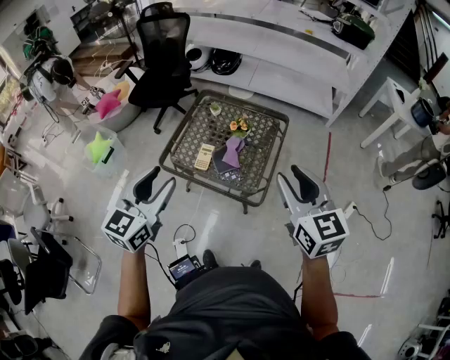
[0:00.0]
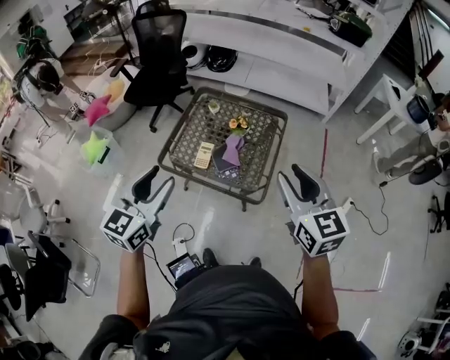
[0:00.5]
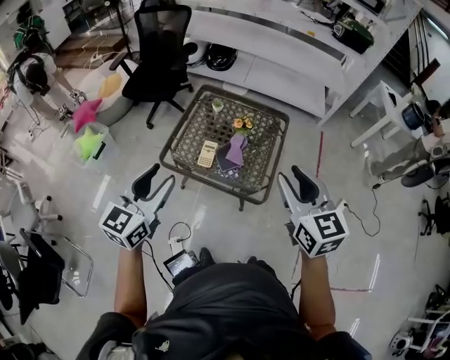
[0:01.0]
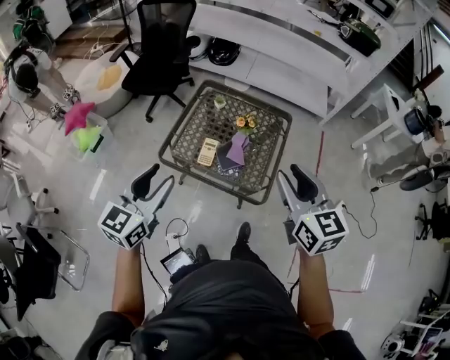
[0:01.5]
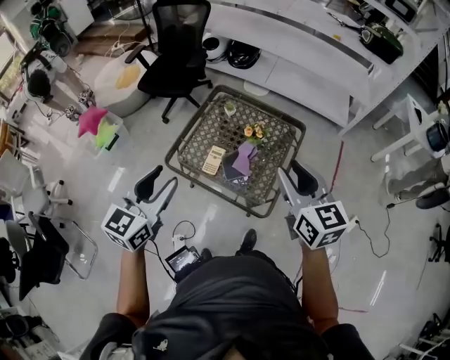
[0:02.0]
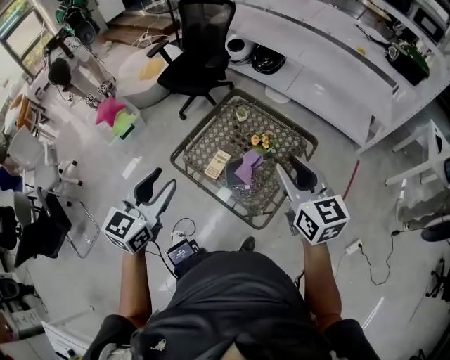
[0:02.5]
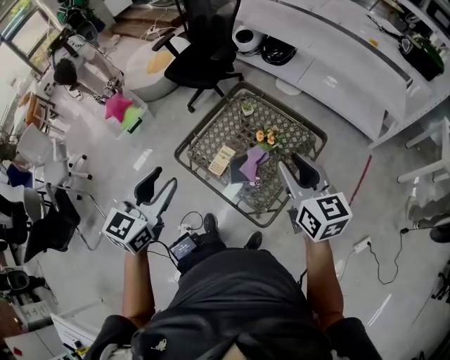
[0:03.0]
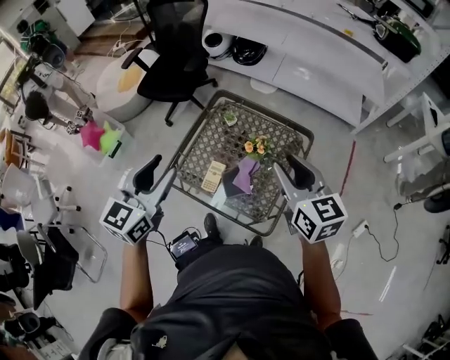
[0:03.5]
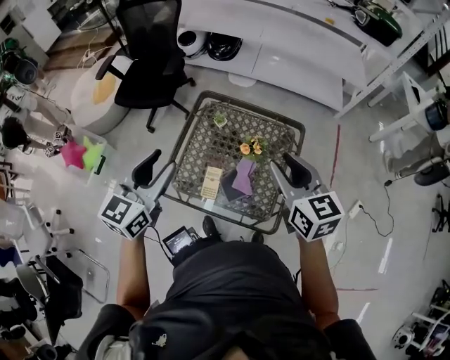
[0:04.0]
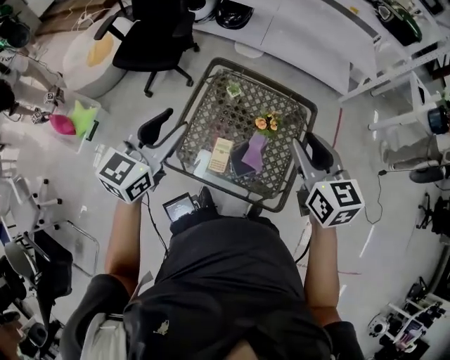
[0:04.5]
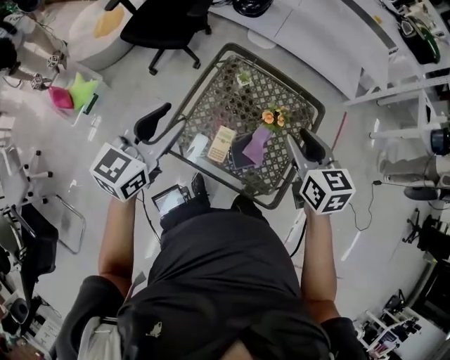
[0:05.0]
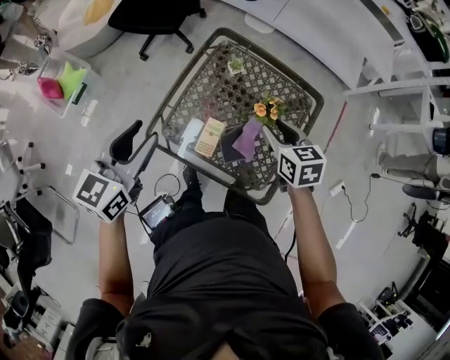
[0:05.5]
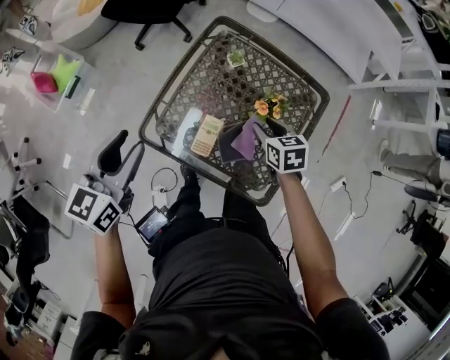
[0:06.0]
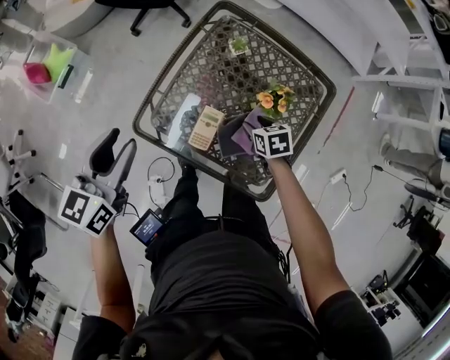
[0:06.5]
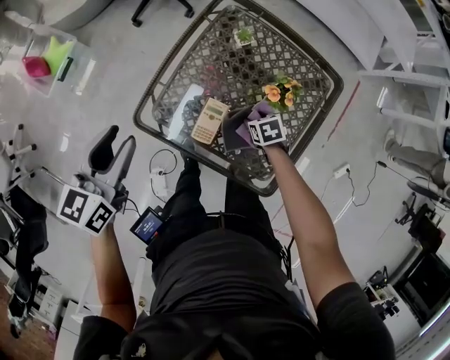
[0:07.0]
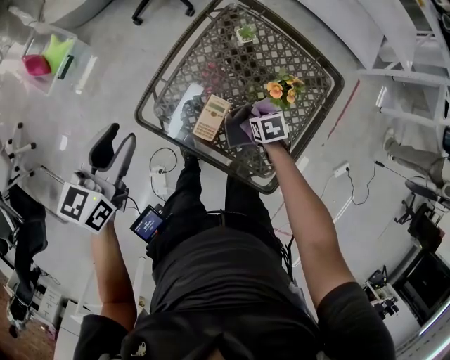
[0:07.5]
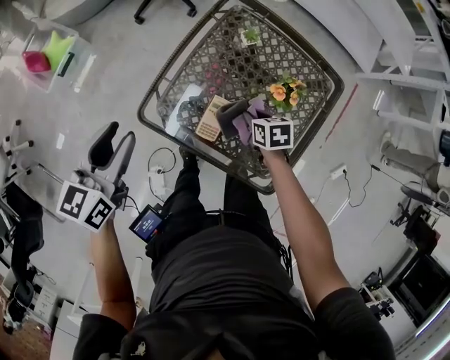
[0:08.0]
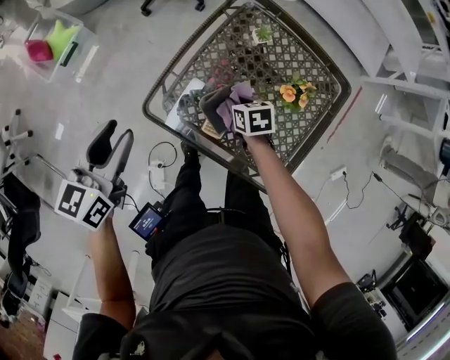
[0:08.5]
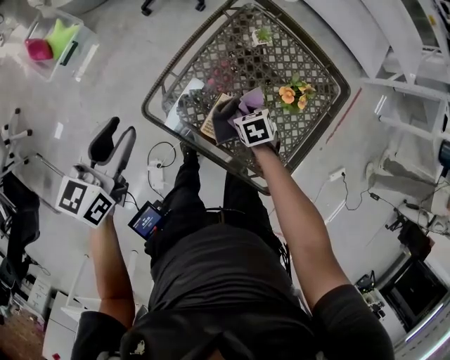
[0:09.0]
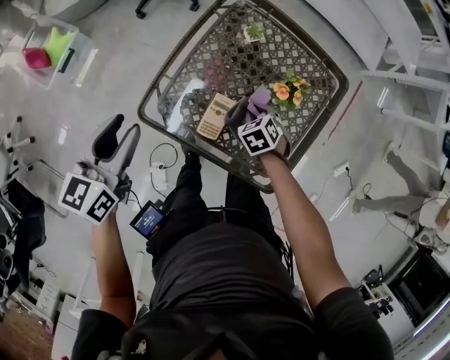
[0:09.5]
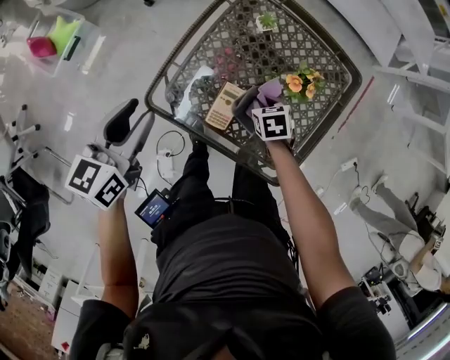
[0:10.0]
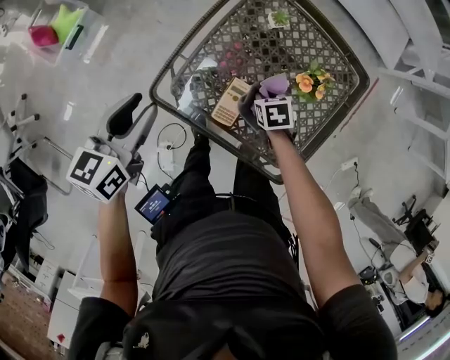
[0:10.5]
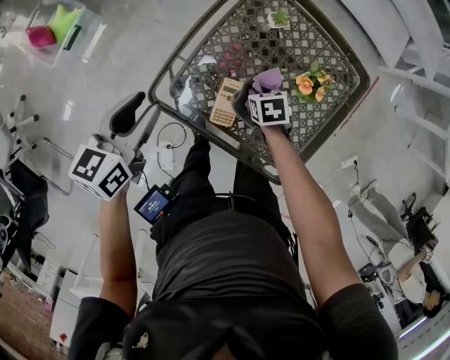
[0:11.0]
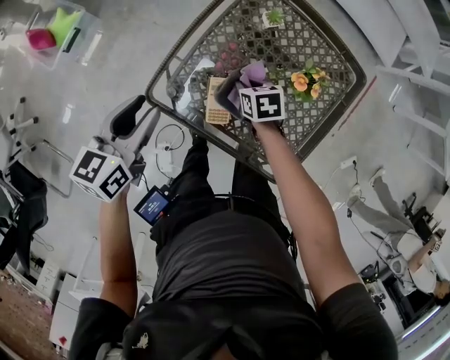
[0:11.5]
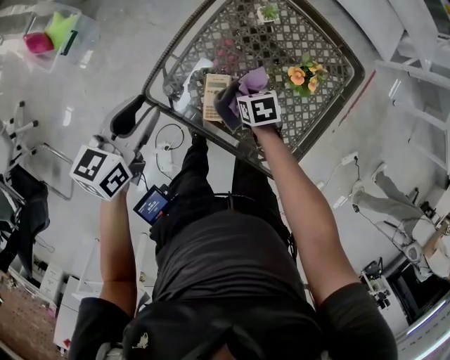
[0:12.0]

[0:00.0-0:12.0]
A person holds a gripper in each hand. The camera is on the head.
0:00.0 to 0:02.0: The right gripper shifts roughly 15 cm forward and to the left; the left gripper travels forward by about 5 cm.
0:02.0 to 0:04.0: The grippers both shift forward by some 20 cm.
0:04.0 to 0:06.0: The left gripper shifts roughly 15 cm downward and to the left, and swivels about 20 degrees; the right gripper heads downward, covering approximately 30 cm, and points its fingers about 40 degrees further downward.
0:06.0 to 0:08.0: The left gripper shifts approximately 5 cm downward. The right gripper travels downward by some 10 cm.
0:08.0 to 0:10.0: The right gripper travels to the left and back again, approximately 10 cm each way.
0:10.0 to 0:12.0: The right gripper heads to the left, covering some 5 cm.

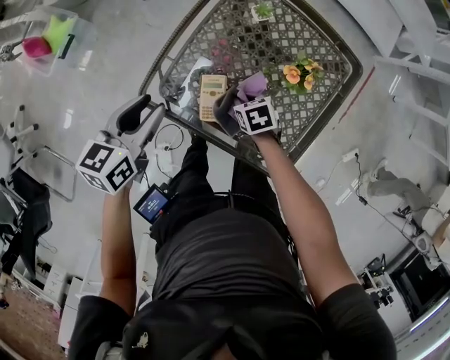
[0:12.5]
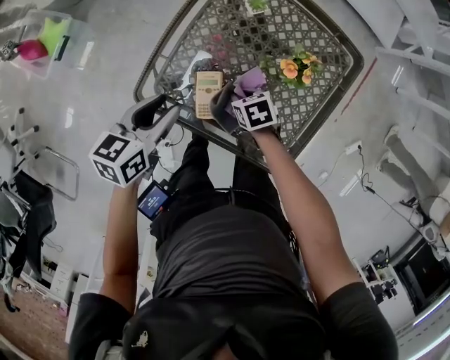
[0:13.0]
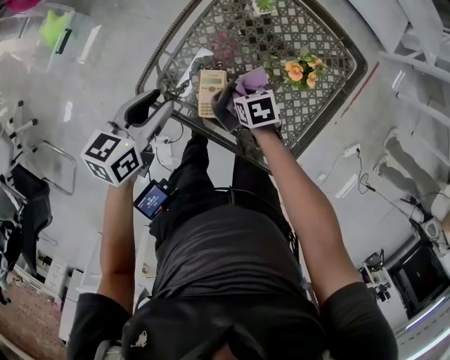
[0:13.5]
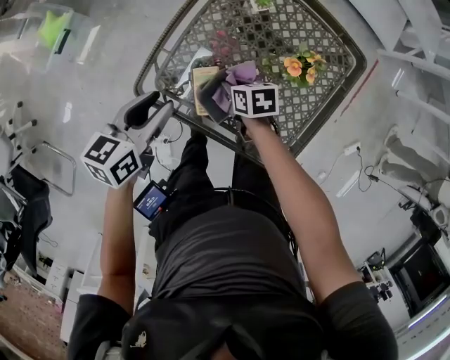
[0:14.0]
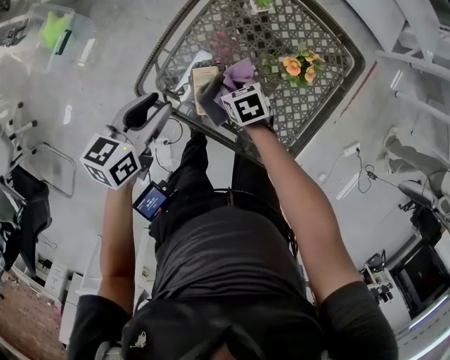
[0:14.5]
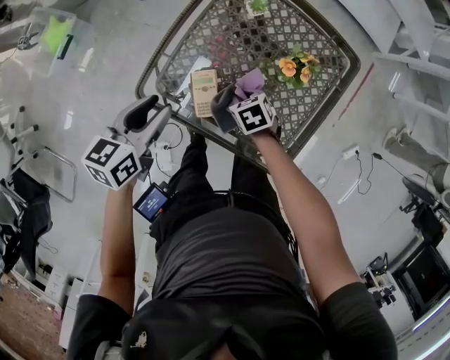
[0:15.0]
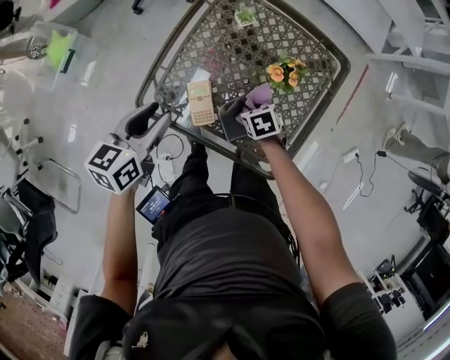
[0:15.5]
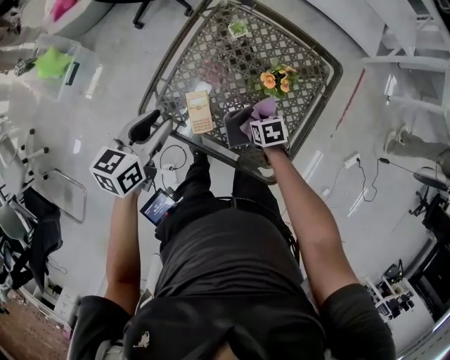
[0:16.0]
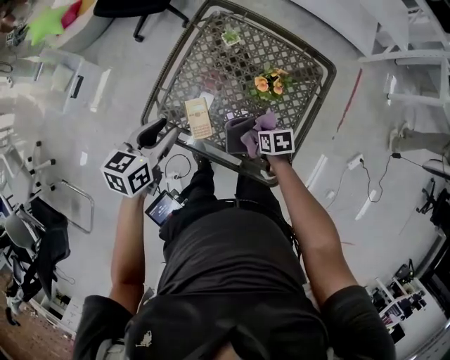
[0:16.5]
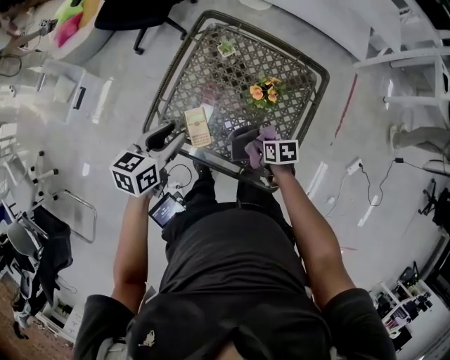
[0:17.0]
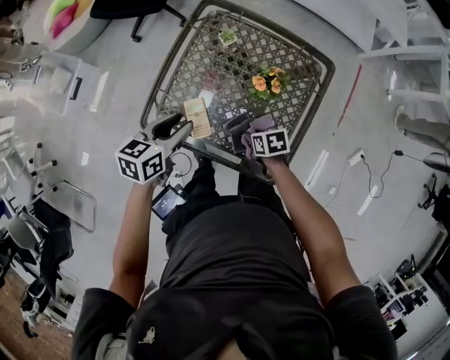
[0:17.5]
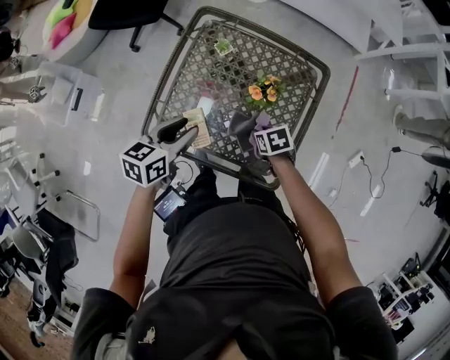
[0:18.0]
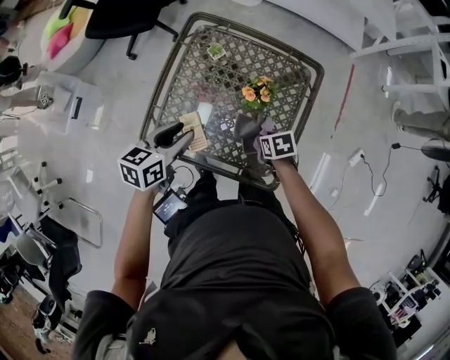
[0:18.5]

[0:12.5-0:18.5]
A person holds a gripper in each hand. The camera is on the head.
0:14.5 to 0:16.5: The right gripper goes some 15 cm to the right and backward, and changes its angle by some 30 degrees, while the left gripper moves approximately 5 cm.
0:16.5 to 0:18.5: The right gripper shifts by roughly 5 cm; the left gripper shifts about 5 cm to the right.

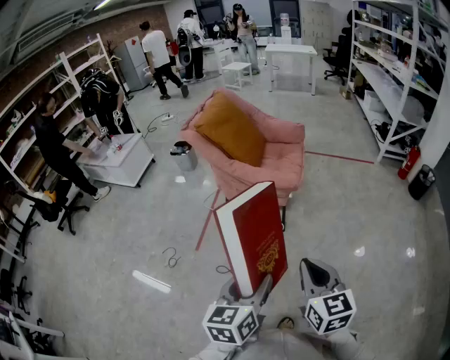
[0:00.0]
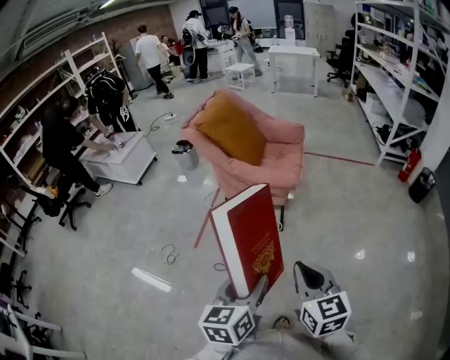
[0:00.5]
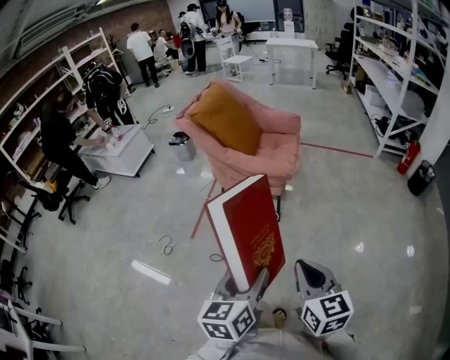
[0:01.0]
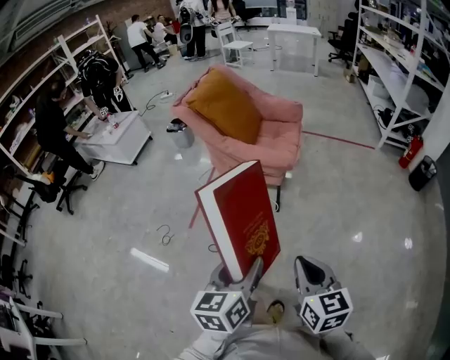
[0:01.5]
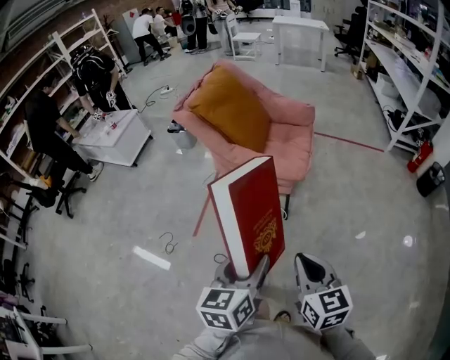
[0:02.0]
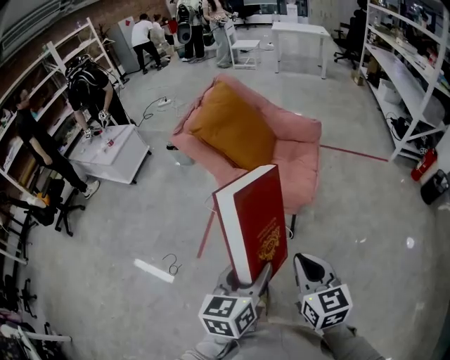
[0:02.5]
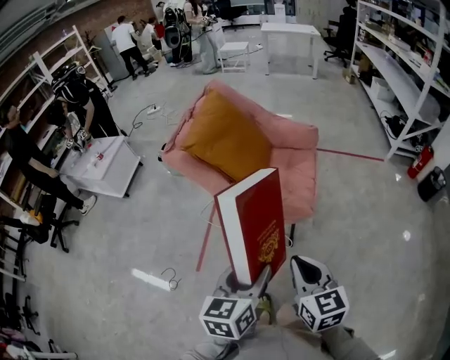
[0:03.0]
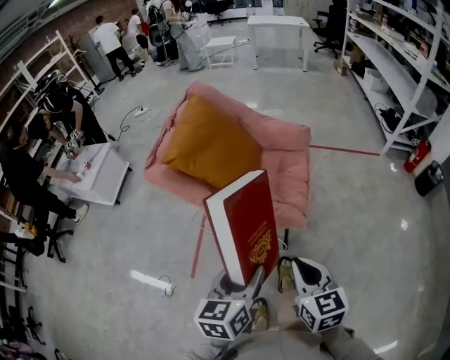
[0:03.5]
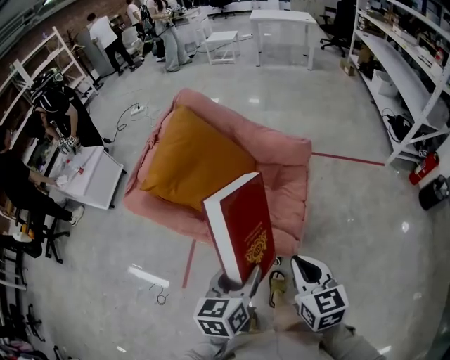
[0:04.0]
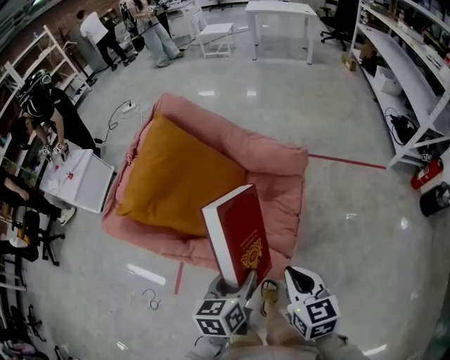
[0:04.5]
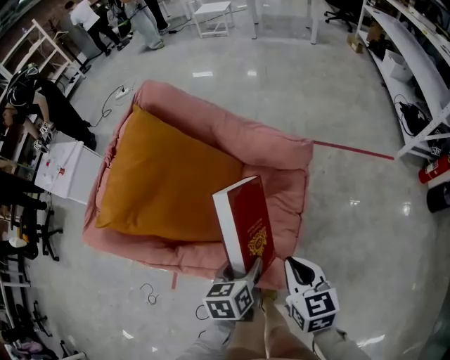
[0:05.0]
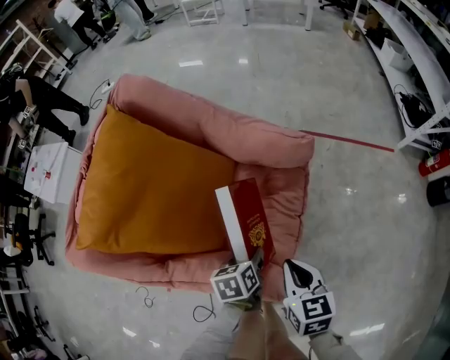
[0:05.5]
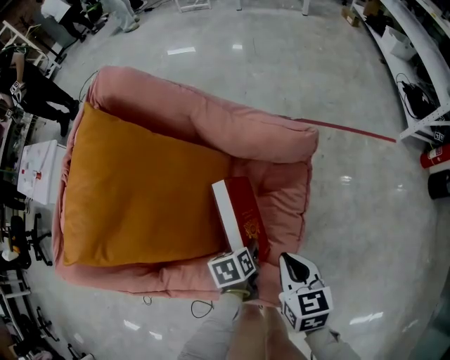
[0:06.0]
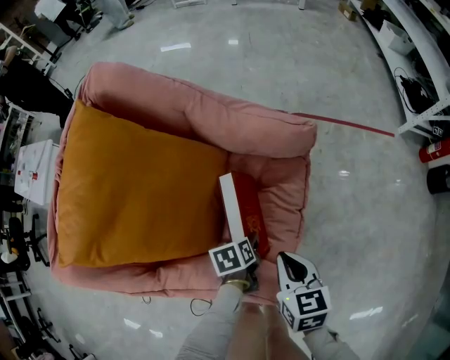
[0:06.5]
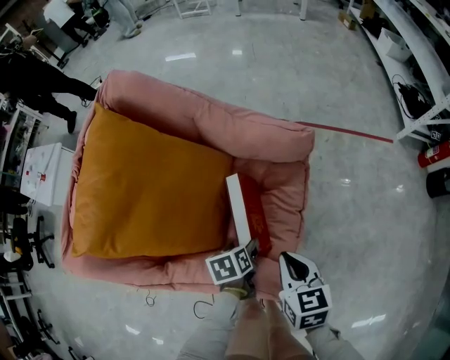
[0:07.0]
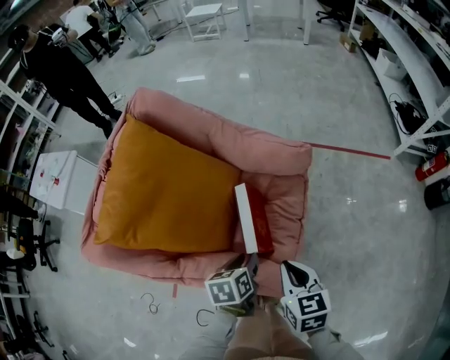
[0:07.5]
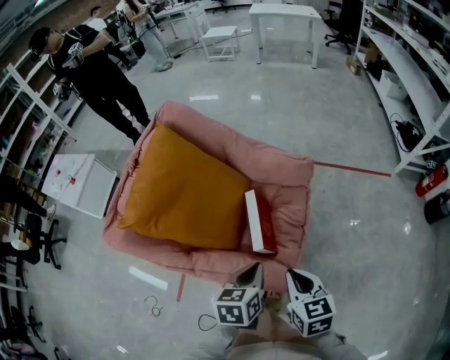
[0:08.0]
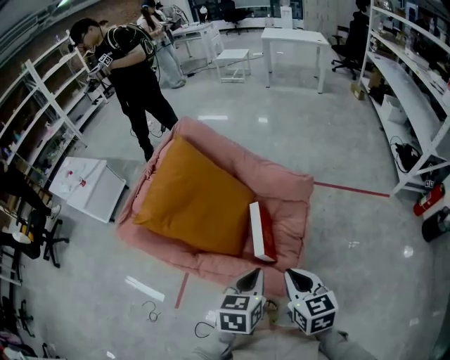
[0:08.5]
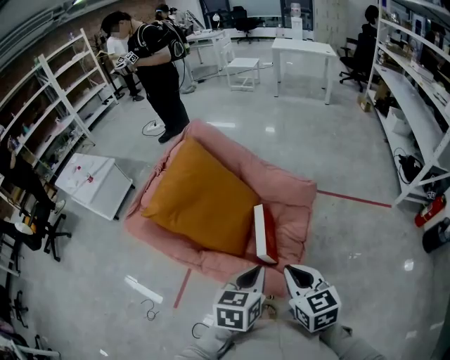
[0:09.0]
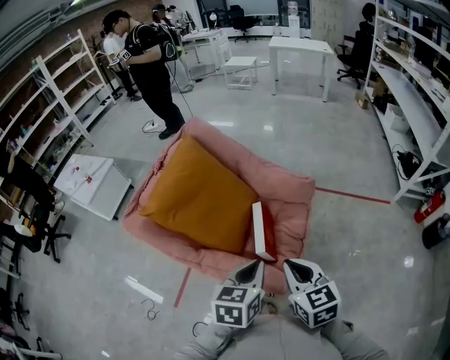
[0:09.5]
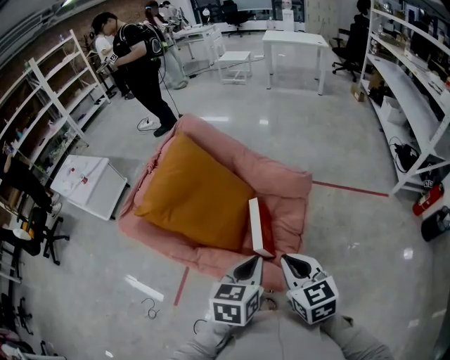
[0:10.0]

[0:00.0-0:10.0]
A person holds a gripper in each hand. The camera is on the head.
0:00.0 to 0:02.0: Both grippers move forward, about 10 cm.
0:02.0 to 0:04.0: Both grippers travel together forward, some 35 cm.
0:04.0 to 0:06.0: The left gripper shifts roughly 35 cm downward and forward, and tips its fingers downward by approximately 30 degrees, while the right gripper moves forward and downward, about 25 cm.
0:06.0 to 0:08.0: The right gripper is displaced upward and backward by roughly 10 cm. Meanwhile the left gripper is displaced upward and backward by about 20 cm, swivels roughly 30 degrees, and closes its fingers.
0:08.0 to 0:10.0: Both grippers move upward, about 10 cm.
